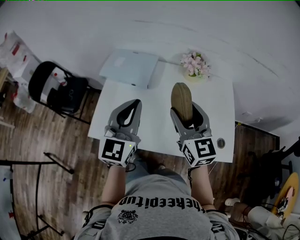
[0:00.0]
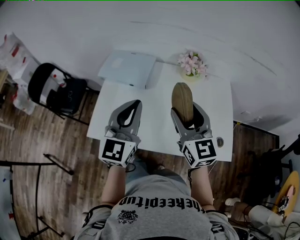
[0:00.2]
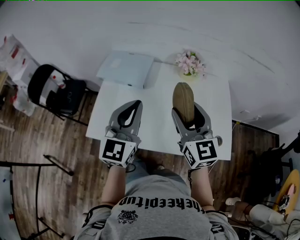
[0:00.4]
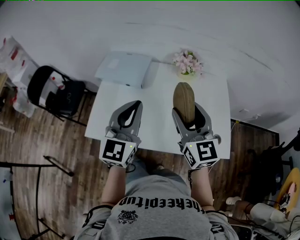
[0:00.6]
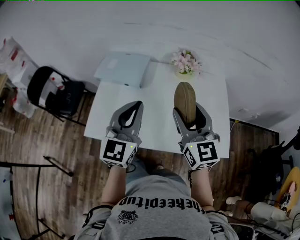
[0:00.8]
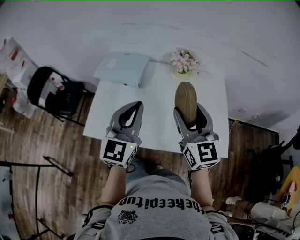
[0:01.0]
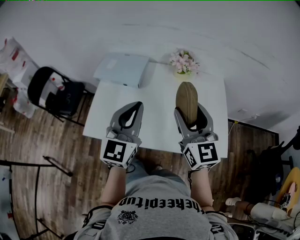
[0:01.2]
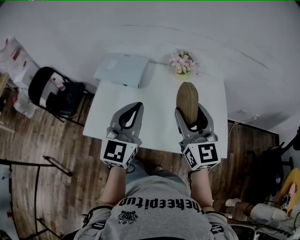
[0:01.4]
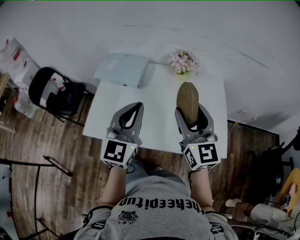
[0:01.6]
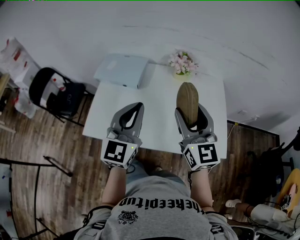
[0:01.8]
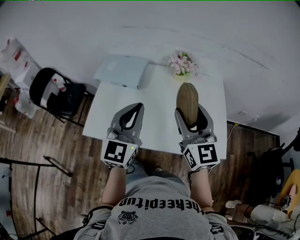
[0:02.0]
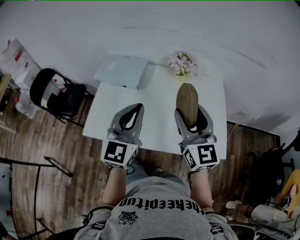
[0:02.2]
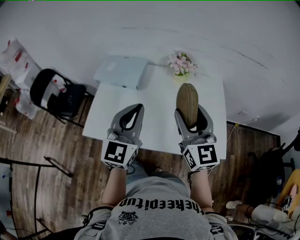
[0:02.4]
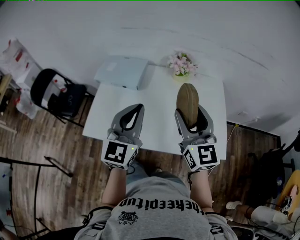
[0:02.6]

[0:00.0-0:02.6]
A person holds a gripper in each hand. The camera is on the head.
0:00.0 to 0:01.2: The two grippers go some 5 cm to the right.
0:01.2 to 0:02.6: The grippers make only small movements.

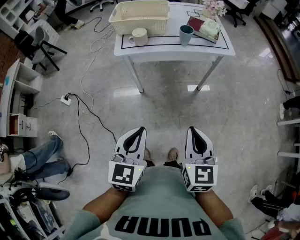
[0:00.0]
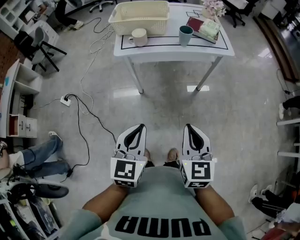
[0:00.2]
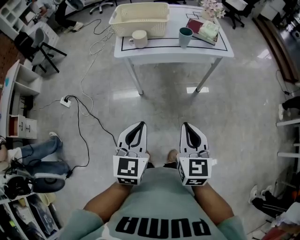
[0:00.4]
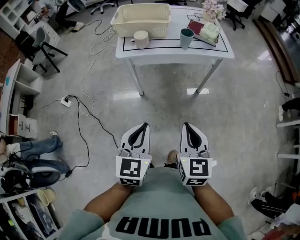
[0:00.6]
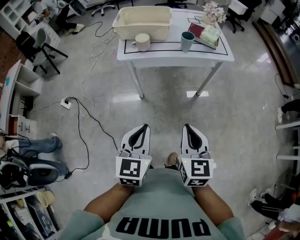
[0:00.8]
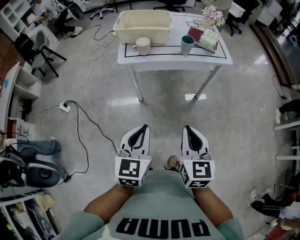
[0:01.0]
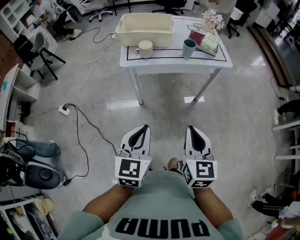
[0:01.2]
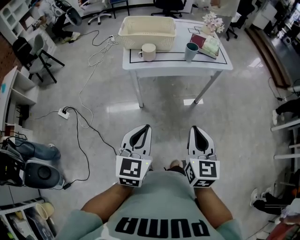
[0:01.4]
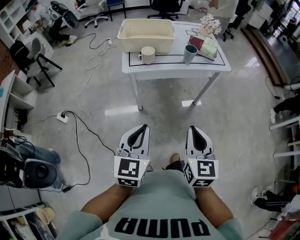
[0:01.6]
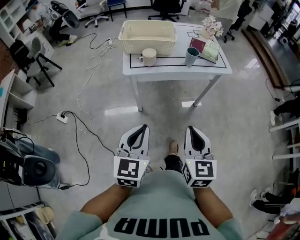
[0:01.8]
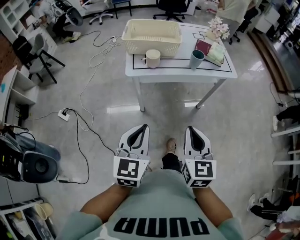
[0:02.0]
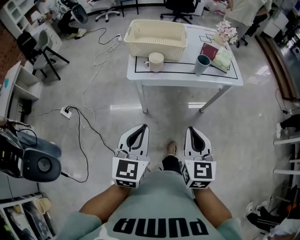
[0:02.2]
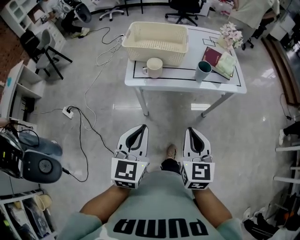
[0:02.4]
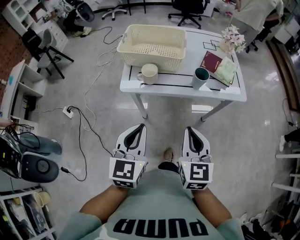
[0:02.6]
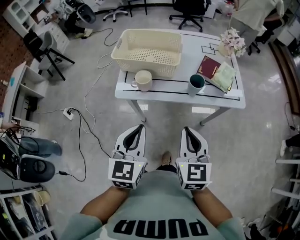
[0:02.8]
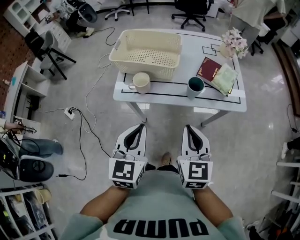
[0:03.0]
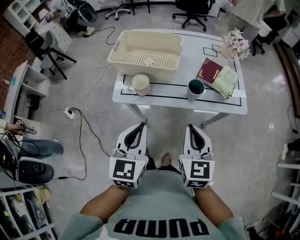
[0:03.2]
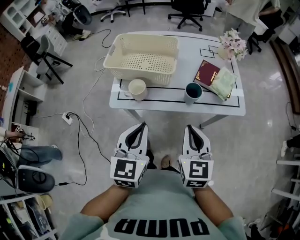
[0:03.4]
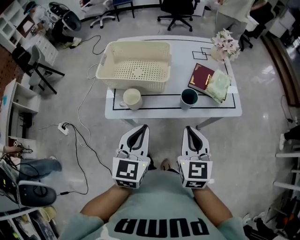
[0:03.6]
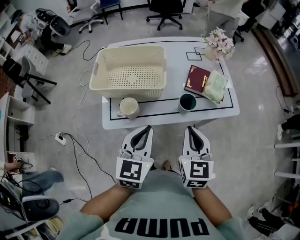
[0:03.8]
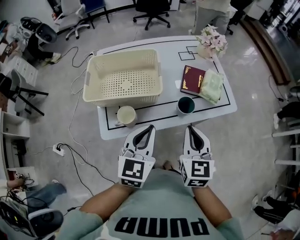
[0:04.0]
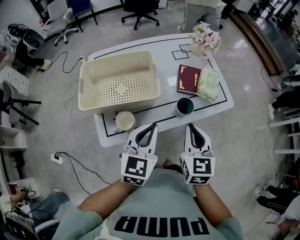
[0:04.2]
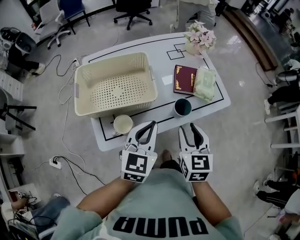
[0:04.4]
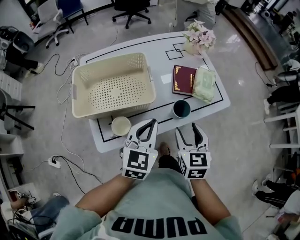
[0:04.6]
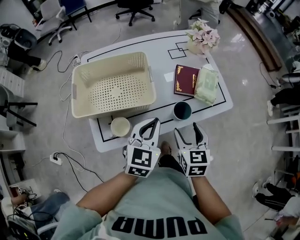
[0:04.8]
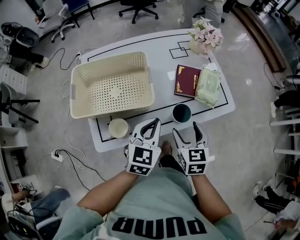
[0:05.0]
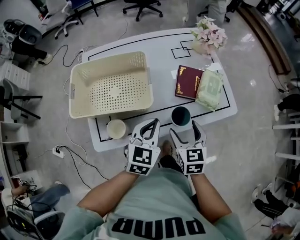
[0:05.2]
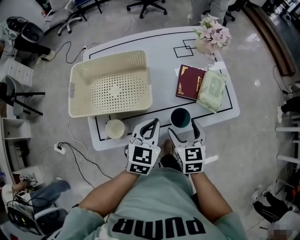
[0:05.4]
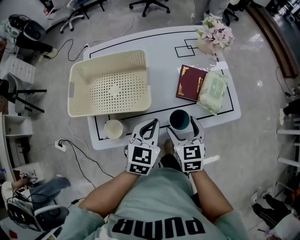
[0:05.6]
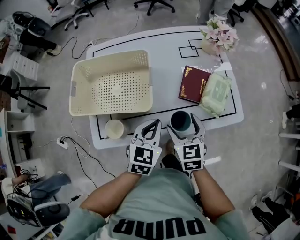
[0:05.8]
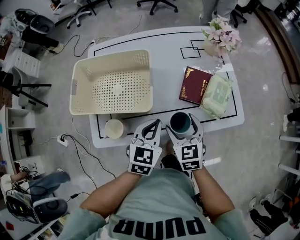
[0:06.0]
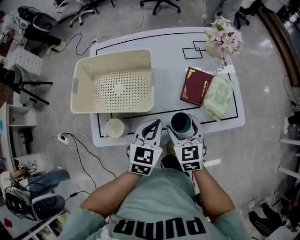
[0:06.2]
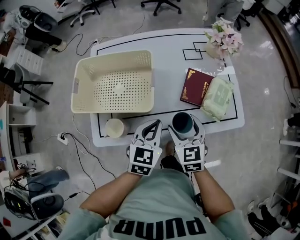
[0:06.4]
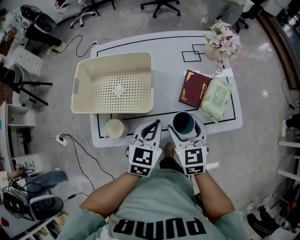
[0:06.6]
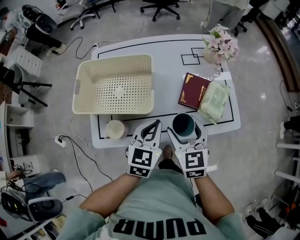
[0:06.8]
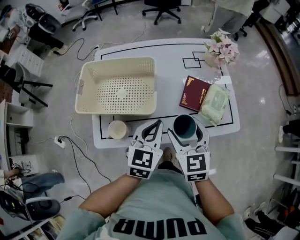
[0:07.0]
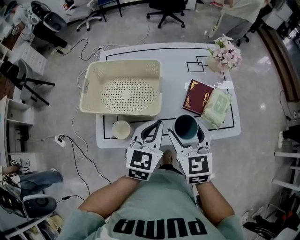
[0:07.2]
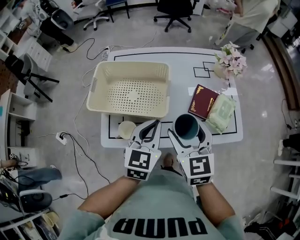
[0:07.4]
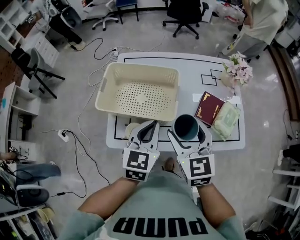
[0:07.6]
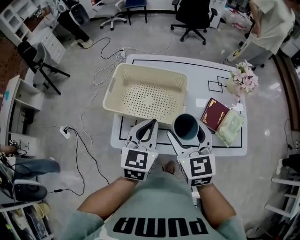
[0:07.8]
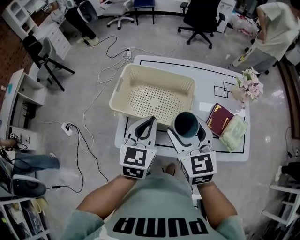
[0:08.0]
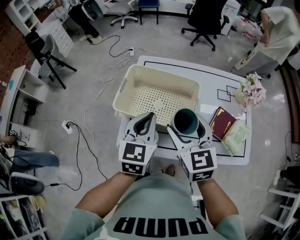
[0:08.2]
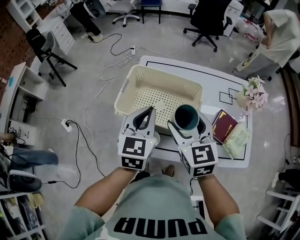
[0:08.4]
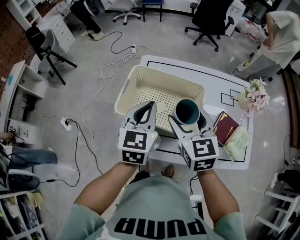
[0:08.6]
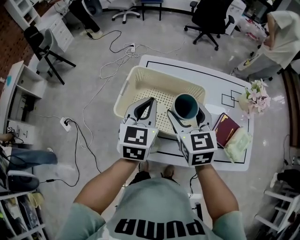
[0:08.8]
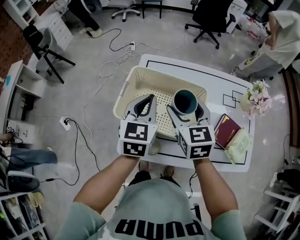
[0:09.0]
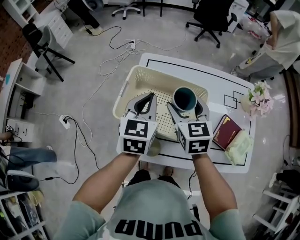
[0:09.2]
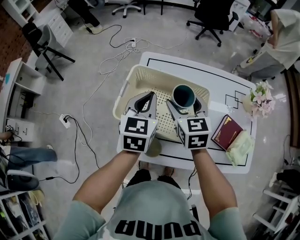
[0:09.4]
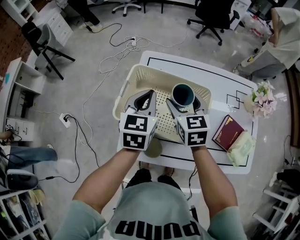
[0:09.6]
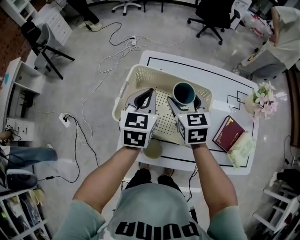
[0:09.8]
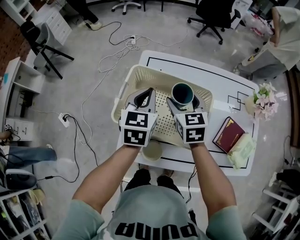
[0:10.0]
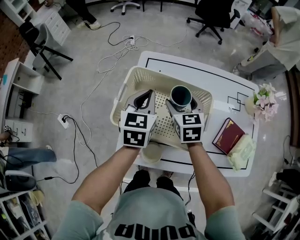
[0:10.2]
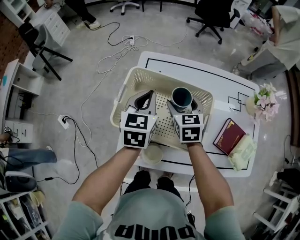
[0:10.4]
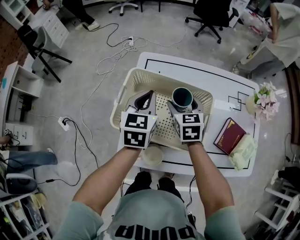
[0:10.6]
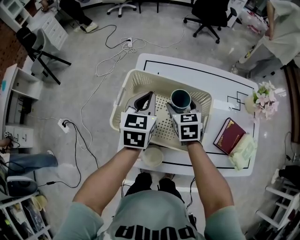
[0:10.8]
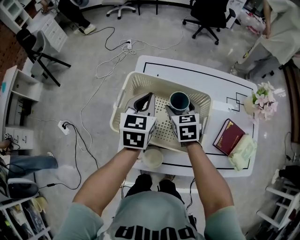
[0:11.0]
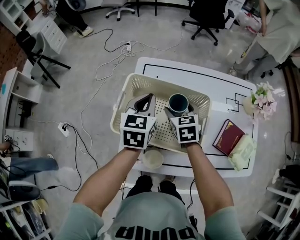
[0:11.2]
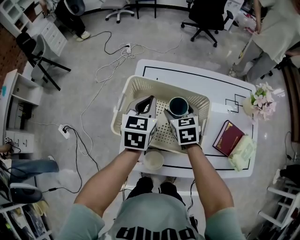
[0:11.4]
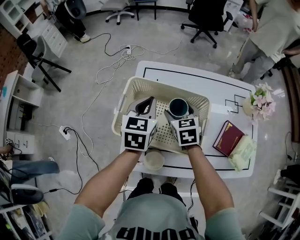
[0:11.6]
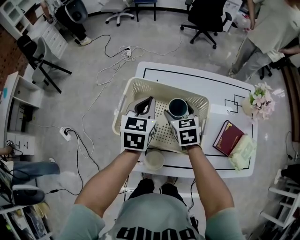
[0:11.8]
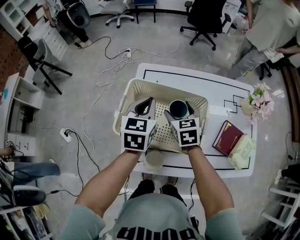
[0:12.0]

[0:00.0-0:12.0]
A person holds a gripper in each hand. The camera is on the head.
0:00.0 to 0:01.6: Both grippers travel together to the left, some 10 cm.
0:01.6 to 0:03.0: Both grippers move forward, about 25 cm.
0:03.0 to 0:04.4: The left gripper moves about 20 cm, and swivels roughly 30 degrees, while the right gripper moves roughly 15 cm, rotates approximately 30 degrees, and opens up.
0:04.4 to 0:06.0: The grippers both shift downward and forward by about 15 cm. The right gripper changes its angle by roughly 20 degrees, and opens.
0:06.0 to 0:07.6: The two grippers go roughly 15 cm upward and to the left.
0:07.6 to 0:09.0: The grippers both shift forward and to the left by about 20 cm.
0:09.0 to 0:10.4: The left gripper is displaced forward and downward by about 10 cm. Meanwhile the right gripper travels downward and forward by some 15 cm.
0:10.4 to 0:12.0: There are only small adjustments of the grippers.

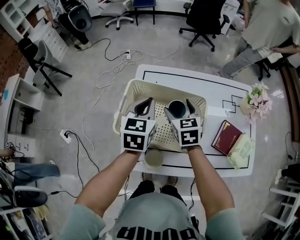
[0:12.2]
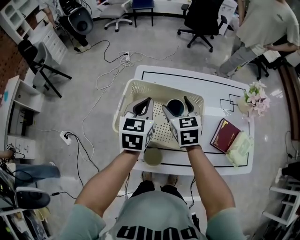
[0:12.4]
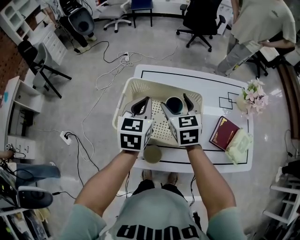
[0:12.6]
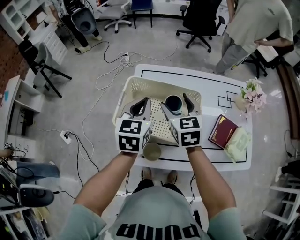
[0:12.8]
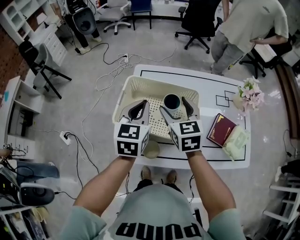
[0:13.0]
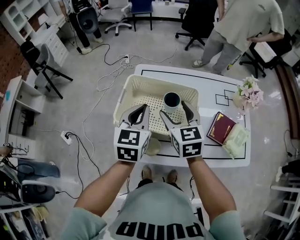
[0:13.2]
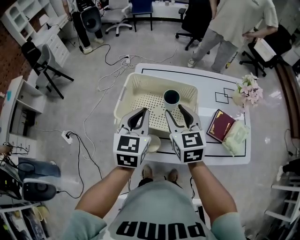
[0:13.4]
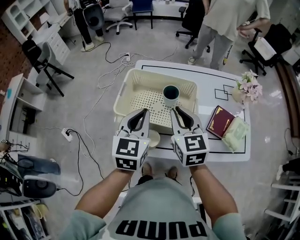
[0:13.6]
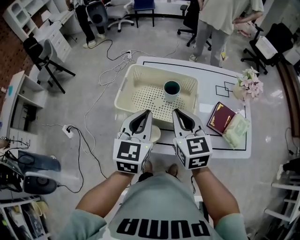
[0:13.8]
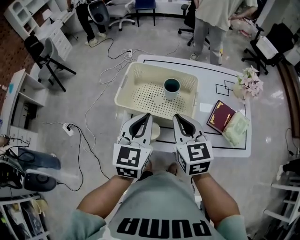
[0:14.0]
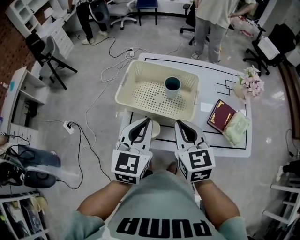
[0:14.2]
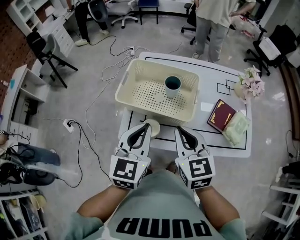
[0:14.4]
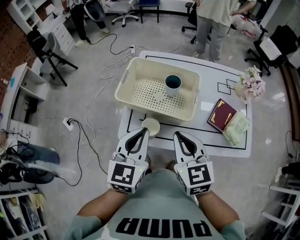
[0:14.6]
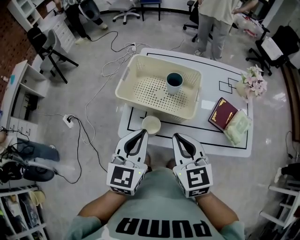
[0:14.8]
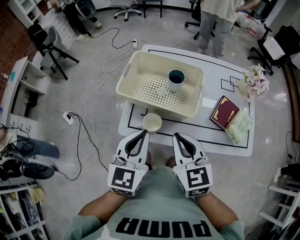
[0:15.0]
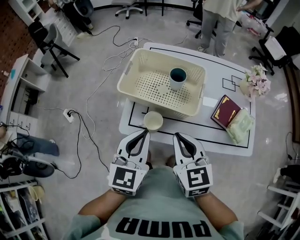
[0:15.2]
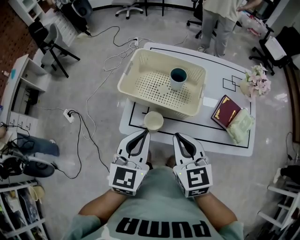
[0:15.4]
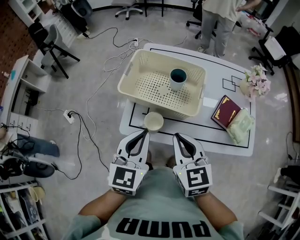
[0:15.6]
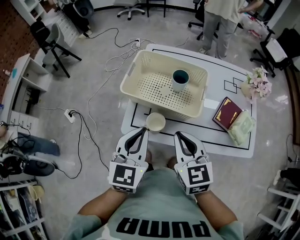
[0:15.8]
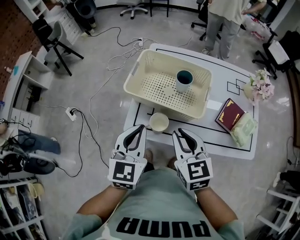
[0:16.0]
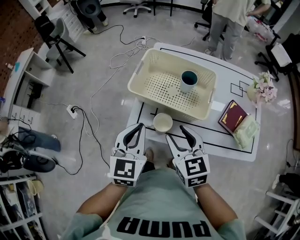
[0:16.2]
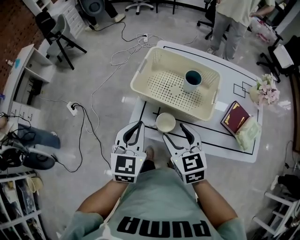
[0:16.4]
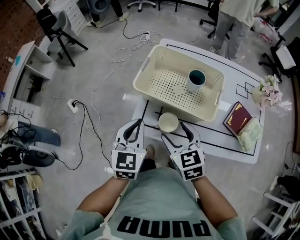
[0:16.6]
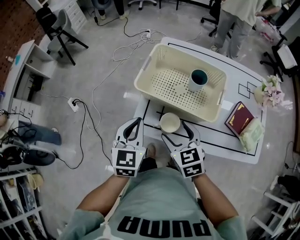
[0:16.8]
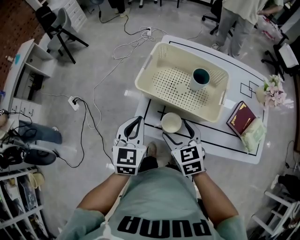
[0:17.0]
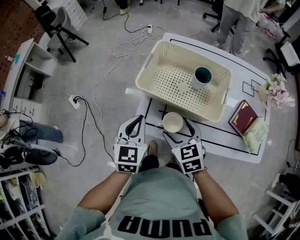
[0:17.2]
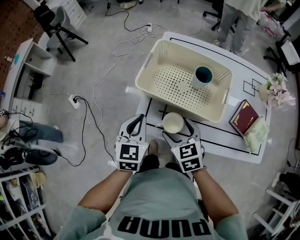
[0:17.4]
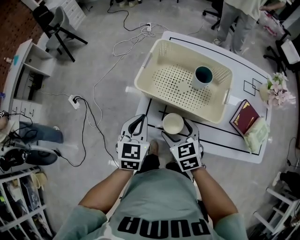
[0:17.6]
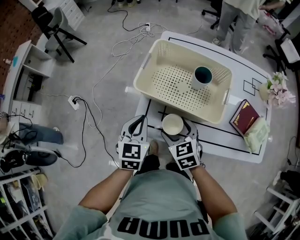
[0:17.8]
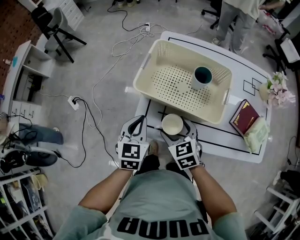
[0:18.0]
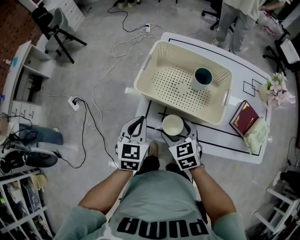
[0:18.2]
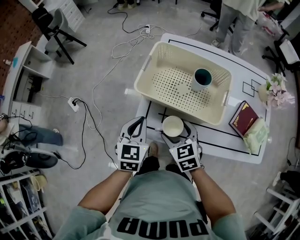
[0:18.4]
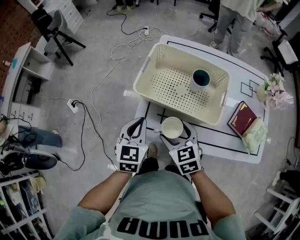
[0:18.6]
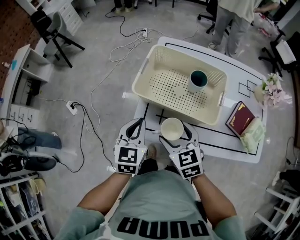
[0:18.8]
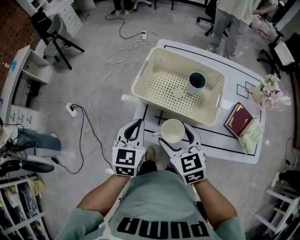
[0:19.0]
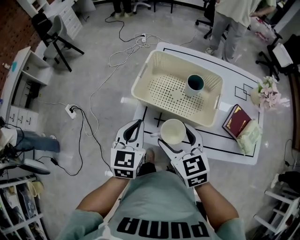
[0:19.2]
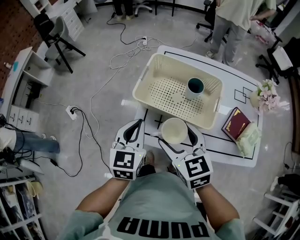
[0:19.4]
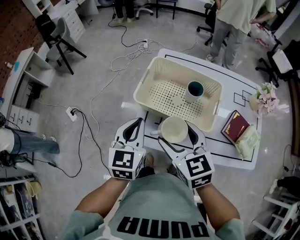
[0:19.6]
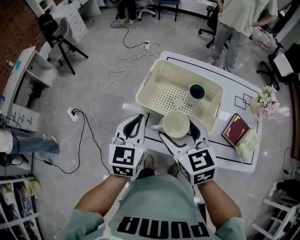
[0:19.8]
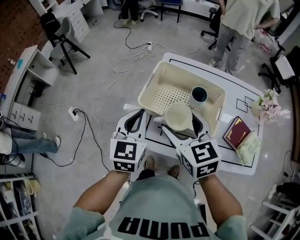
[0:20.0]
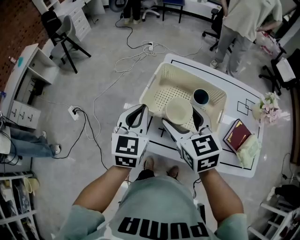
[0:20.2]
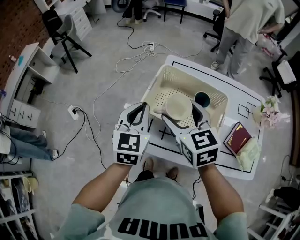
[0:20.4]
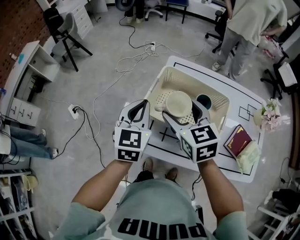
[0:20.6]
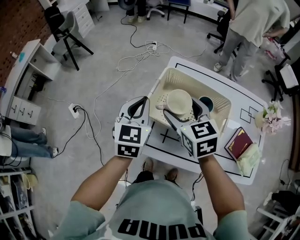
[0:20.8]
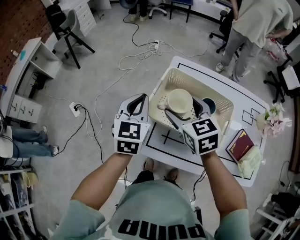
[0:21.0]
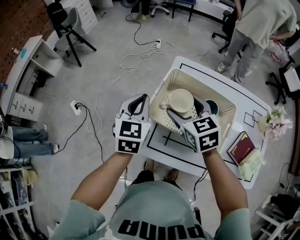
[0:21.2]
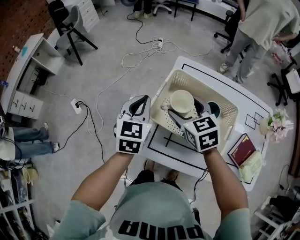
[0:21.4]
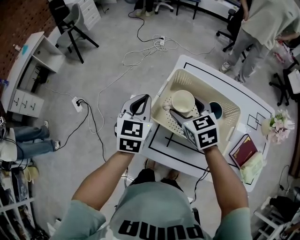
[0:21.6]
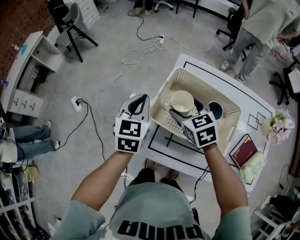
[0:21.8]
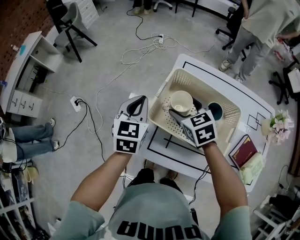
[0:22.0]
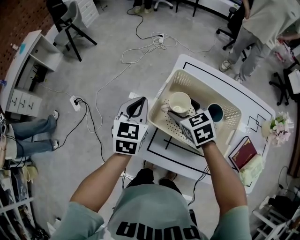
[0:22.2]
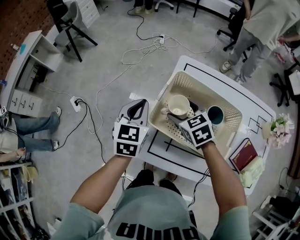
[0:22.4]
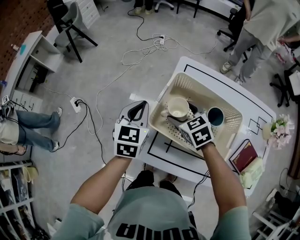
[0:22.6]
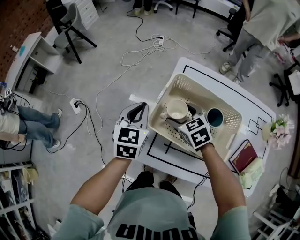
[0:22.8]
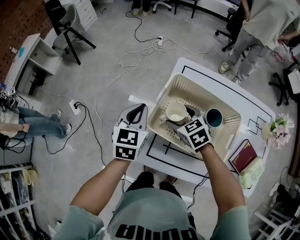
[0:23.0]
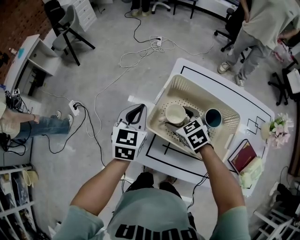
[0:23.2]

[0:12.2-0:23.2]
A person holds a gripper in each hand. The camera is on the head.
0:12.2 to 0:13.8: The right gripper is displaced backward and upward by about 20 cm, and closes up. Meanwhile the left gripper is displaced backward by approximately 20 cm.
0:13.8 to 0:15.4: Both grippers move backward, roughly 10 cm.
0:15.4 to 0:17.0: The right gripper heads downward, to the left and forward, covering approximately 15 cm, and opens up, while the left gripper shifts approximately 15 cm to the left, downward and forward.
0:17.0 to 0:18.4: The grippers stay close to where they were, moving slightly.
0:18.4 to 0:20.0: The right gripper shifts roughly 20 cm upward. The left gripper goes approximately 10 cm upward.
0:20.0 to 0:21.6: The right gripper moves forward and downward, about 15 cm, while the left gripper moves forward, approximately 10 cm.
0:21.6 to 0:23.2: The right gripper travels downward by approximately 10 cm.
